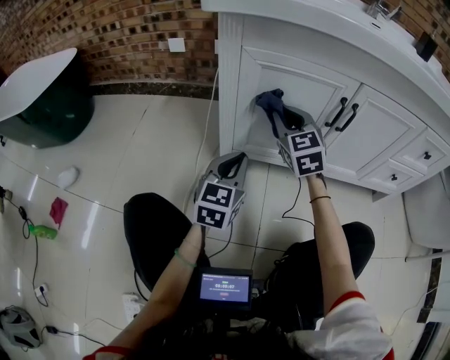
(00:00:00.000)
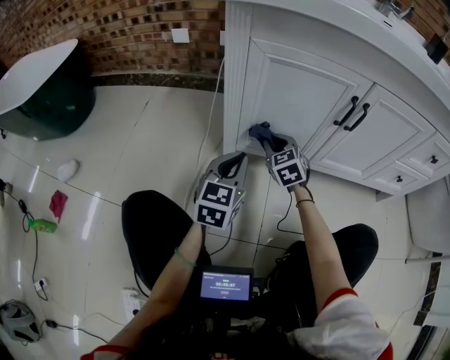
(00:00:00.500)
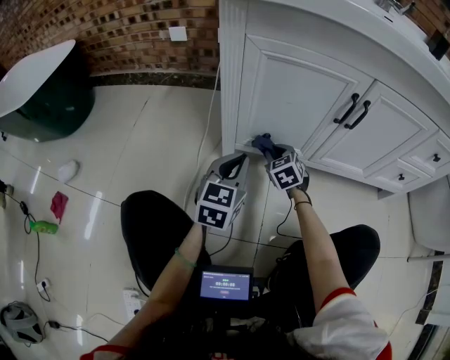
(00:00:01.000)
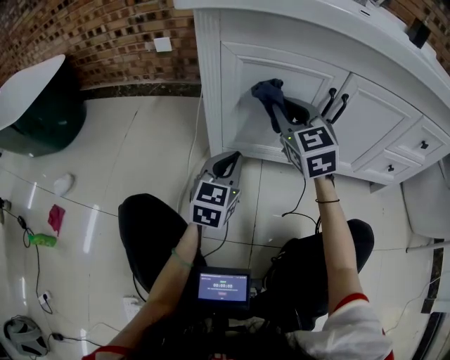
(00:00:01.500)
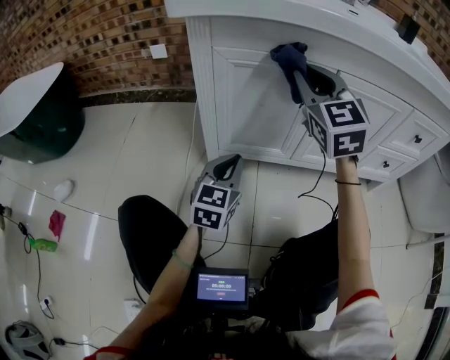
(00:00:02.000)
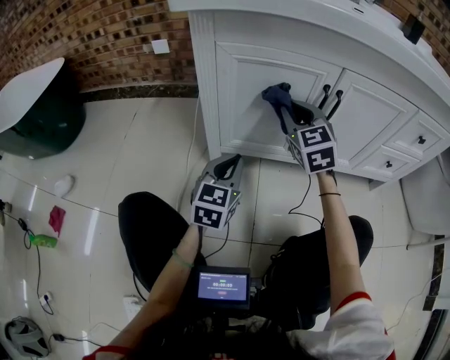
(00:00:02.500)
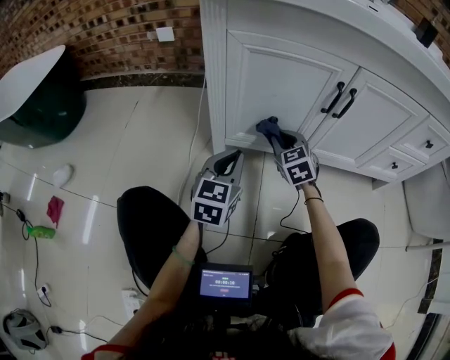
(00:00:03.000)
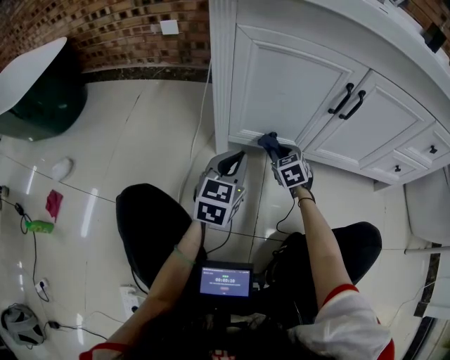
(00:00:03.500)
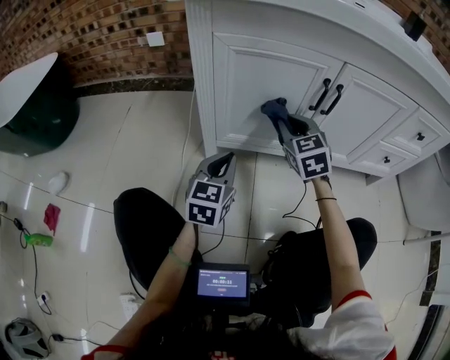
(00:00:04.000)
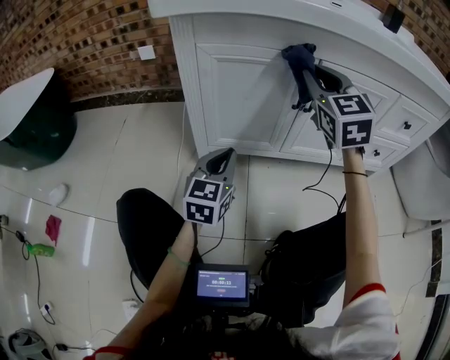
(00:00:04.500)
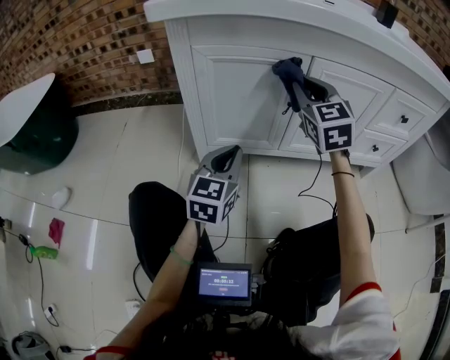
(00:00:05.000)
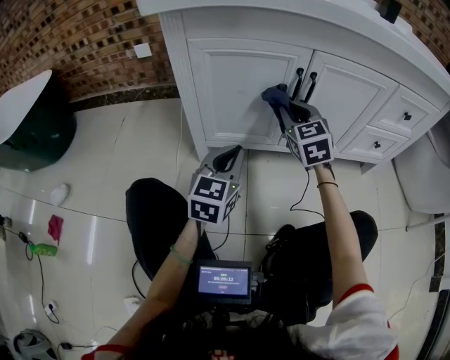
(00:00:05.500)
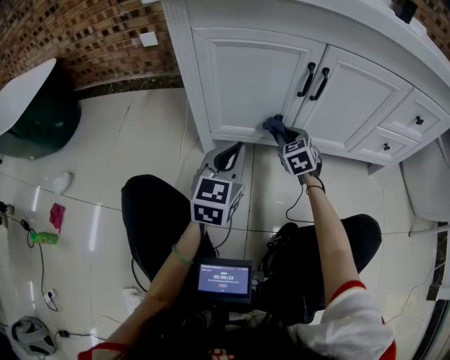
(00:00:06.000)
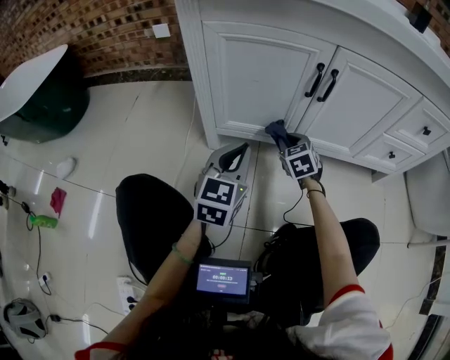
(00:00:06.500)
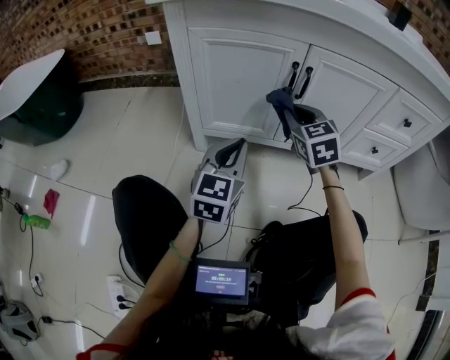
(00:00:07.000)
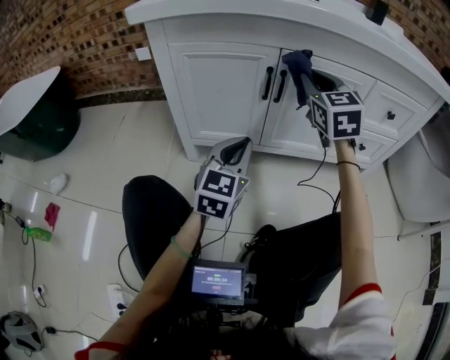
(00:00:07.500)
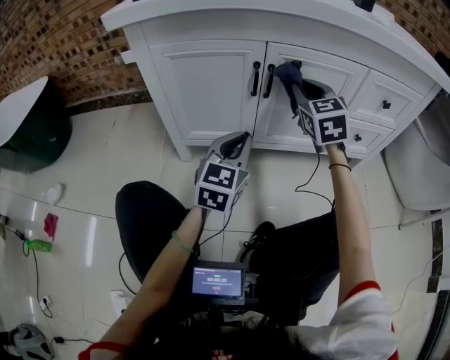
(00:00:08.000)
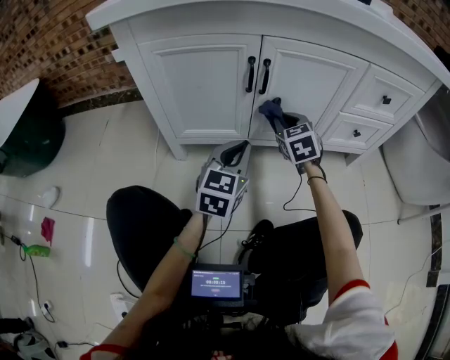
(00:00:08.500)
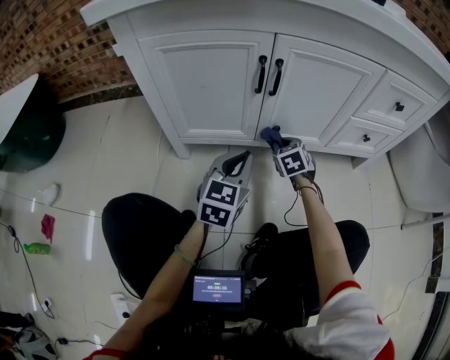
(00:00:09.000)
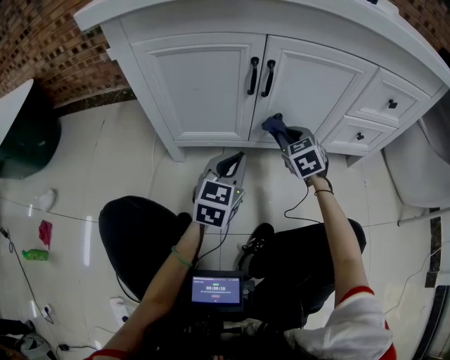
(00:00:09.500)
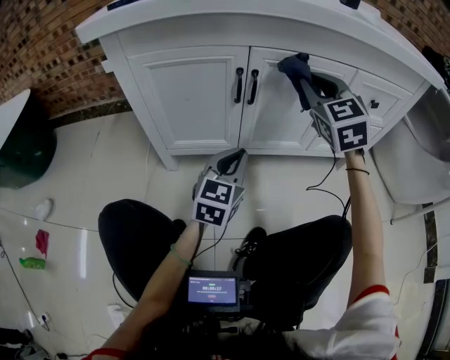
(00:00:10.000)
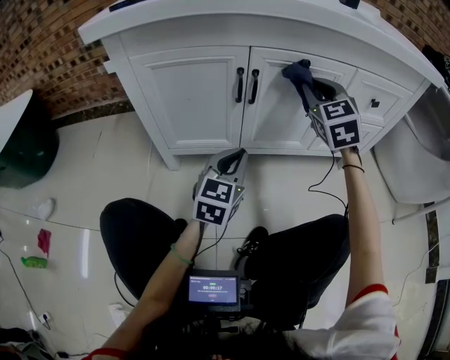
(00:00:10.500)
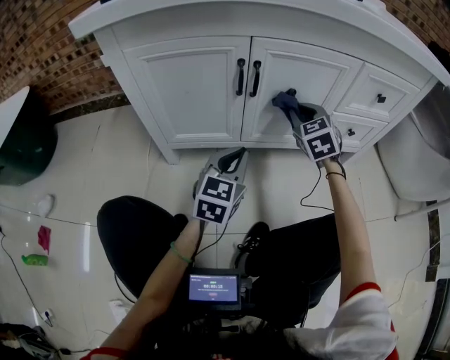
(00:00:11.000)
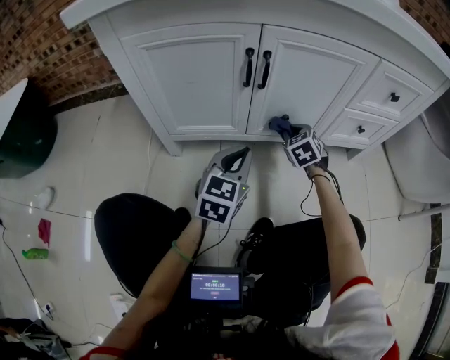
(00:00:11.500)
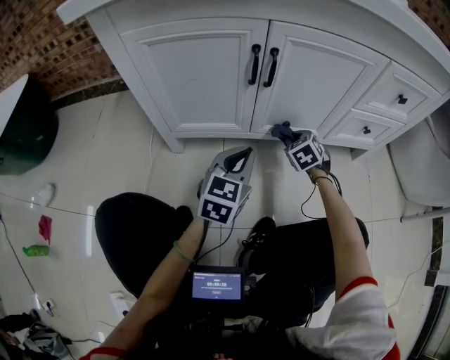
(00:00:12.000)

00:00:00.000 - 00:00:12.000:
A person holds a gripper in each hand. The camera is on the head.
00:00:00.000 - 00:00:02.000: The right gripper moves upward and to the right, roughly 20 cm.
00:00:02.000 - 00:00:04.000: The right gripper goes some 20 cm downward, and changes its angle by approximately 20 degrees.
00:00:04.000 - 00:00:06.000: The left gripper shifts about 5 cm to the right, while the right gripper shifts roughly 15 cm downward and to the right.
00:00:06.000 - 00:00:08.000: The left gripper heads to the right, covering some 15 cm, while the right gripper heads upward and to the right, covering about 30 cm, and changes its angle by some 20 degrees.
00:00:08.000 - 00:00:10.000: The right gripper reaches some 30 cm downward, then returns.
00:00:10.000 - 00:00:12.000: The left gripper heads downward, covering roughly 5 cm; the right gripper heads downward, covering approximately 40 cm, and tips its fingers downward by approximately 40 degrees.

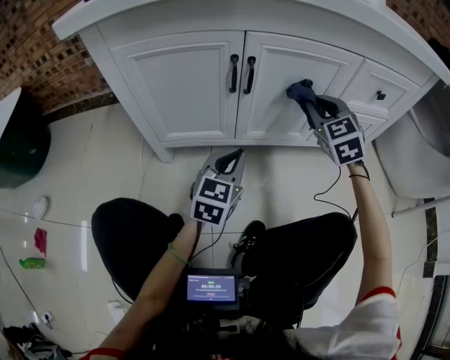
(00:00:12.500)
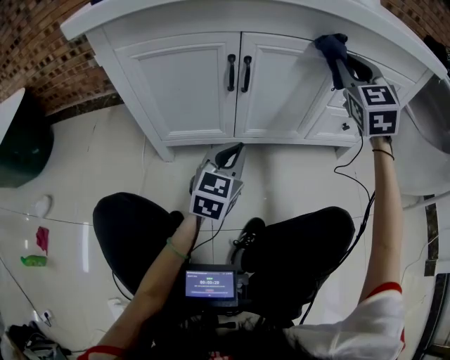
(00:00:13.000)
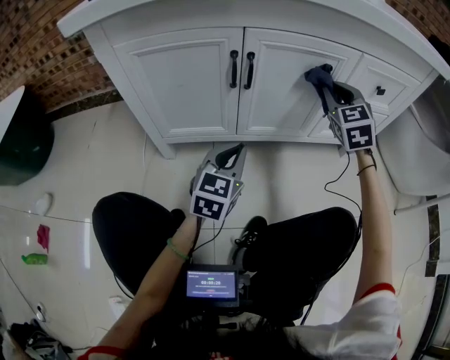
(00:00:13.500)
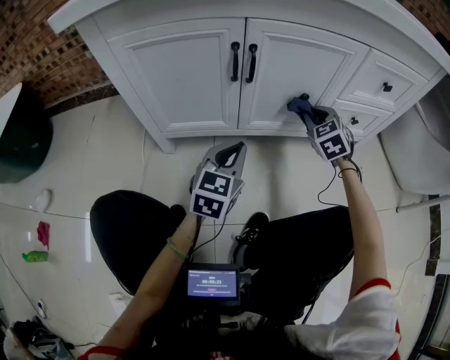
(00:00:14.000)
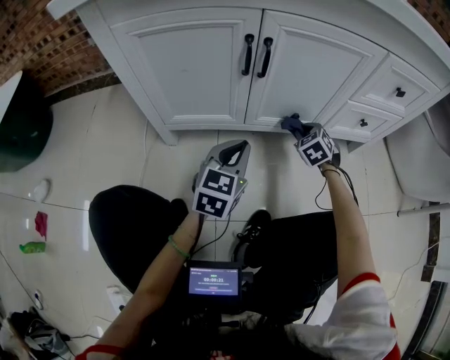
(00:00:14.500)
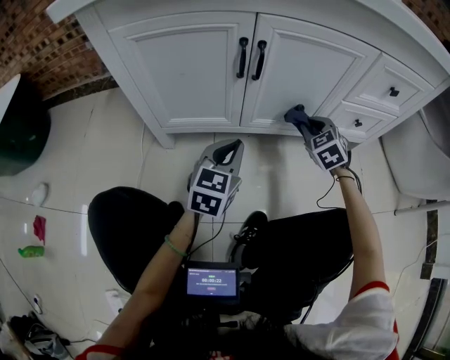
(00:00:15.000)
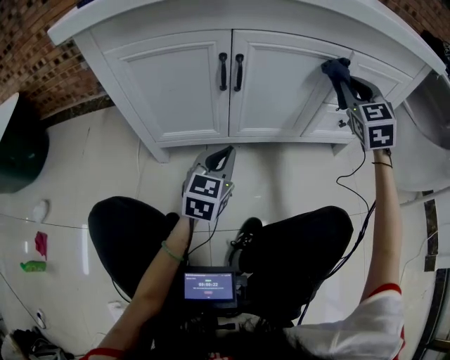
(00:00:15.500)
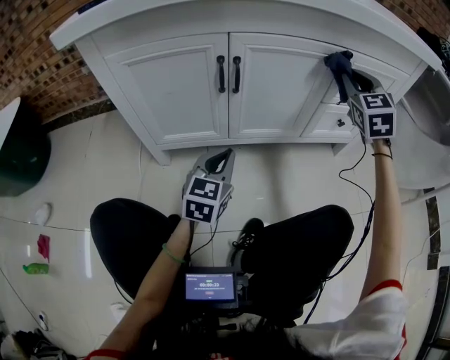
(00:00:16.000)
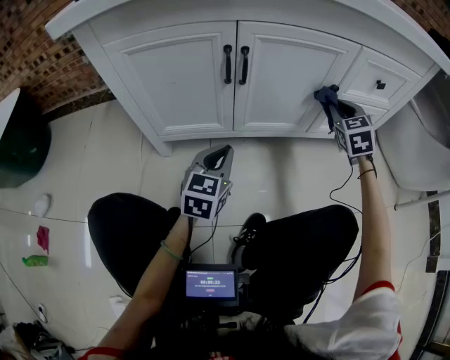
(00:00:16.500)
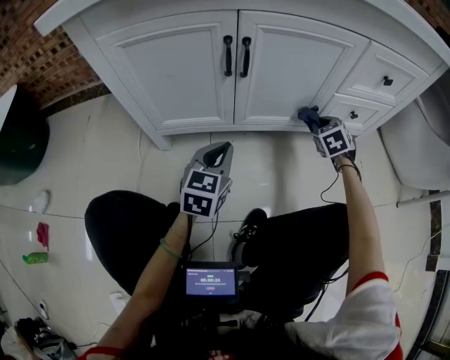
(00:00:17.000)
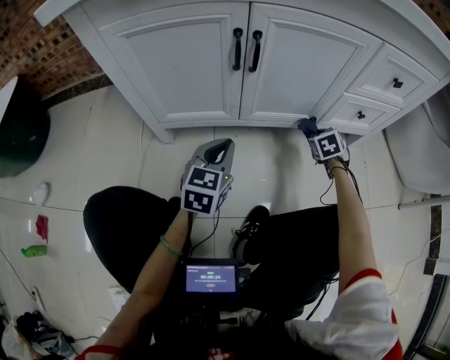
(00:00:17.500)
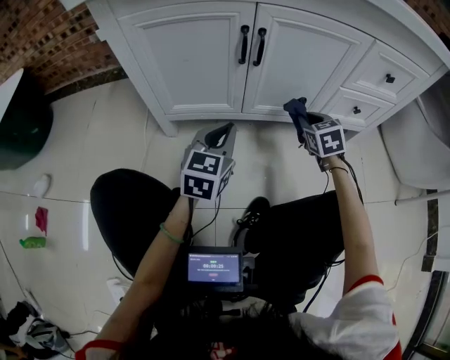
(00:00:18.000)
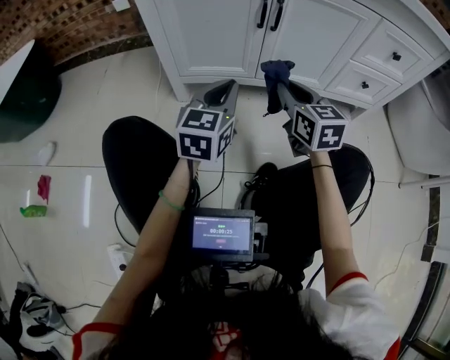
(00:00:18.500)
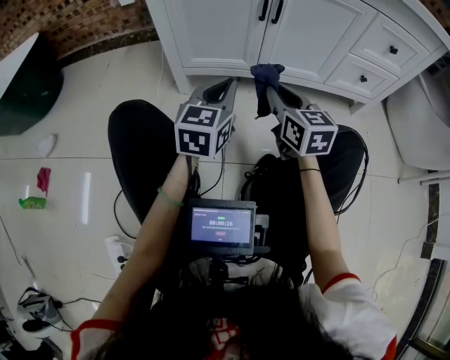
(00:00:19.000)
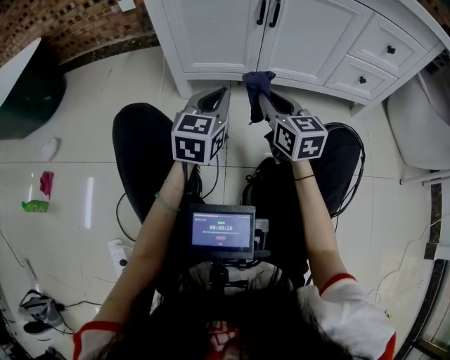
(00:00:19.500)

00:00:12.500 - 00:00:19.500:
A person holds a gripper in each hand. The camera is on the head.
00:00:12.500 - 00:00:14.500: The right gripper heads downward, covering about 25 cm, and swivels approximately 20 degrees.
00:00:14.500 - 00:00:16.000: The right gripper heads upward, covering about 35 cm, and tilts its fingers some 30 degrees upward.
00:00:16.000 - 00:00:17.500: The left gripper is displaced downward by about 5 cm. Meanwhile the right gripper is displaced downward by about 40 cm, and angles its fingers downward, by about 40 degrees.
00:00:17.500 - 00:00:19.500: The left gripper heads backward, upward and to the left, covering about 20 cm, while the right gripper travels to the left, backward and upward by approximately 40 cm, and points its fingers roughly 40 degrees further upward.

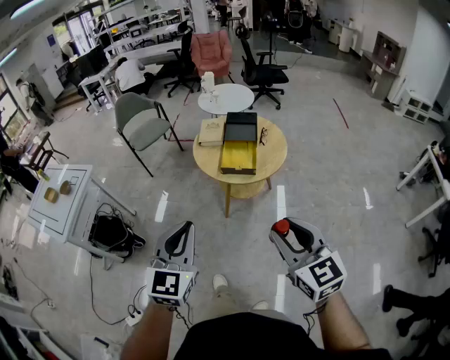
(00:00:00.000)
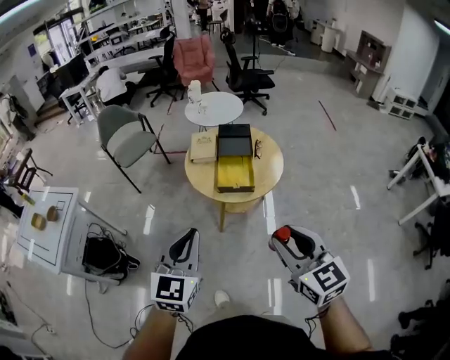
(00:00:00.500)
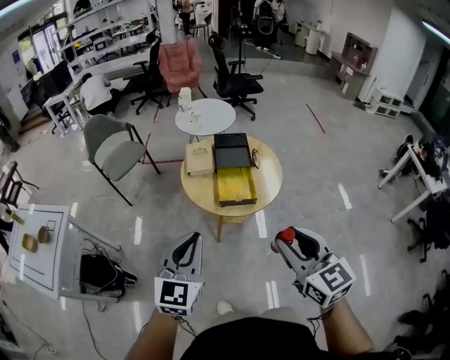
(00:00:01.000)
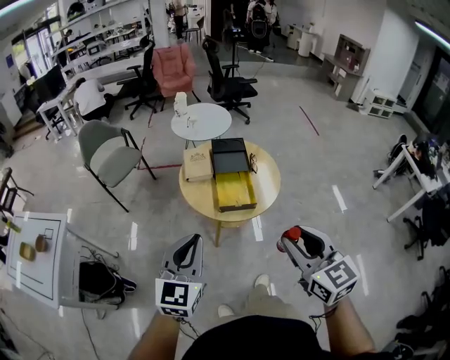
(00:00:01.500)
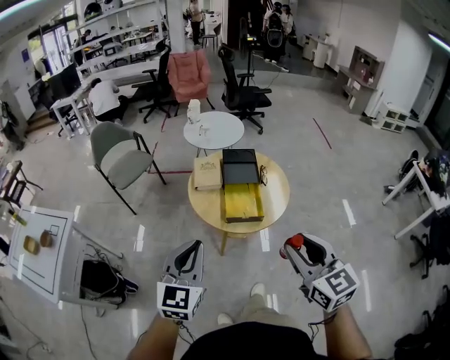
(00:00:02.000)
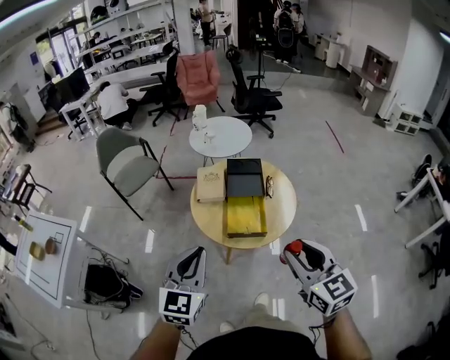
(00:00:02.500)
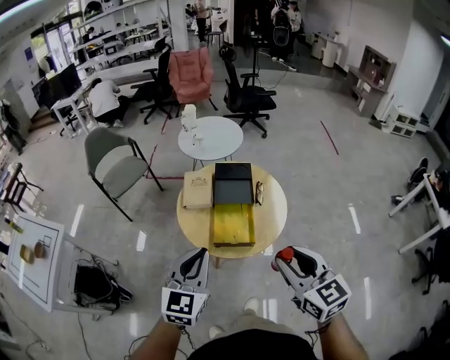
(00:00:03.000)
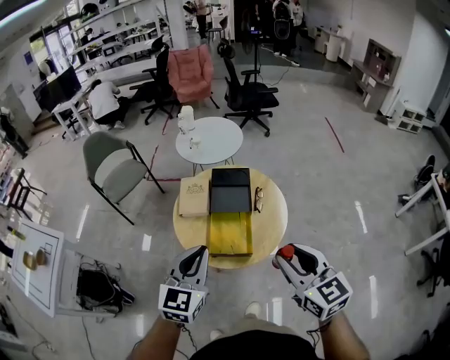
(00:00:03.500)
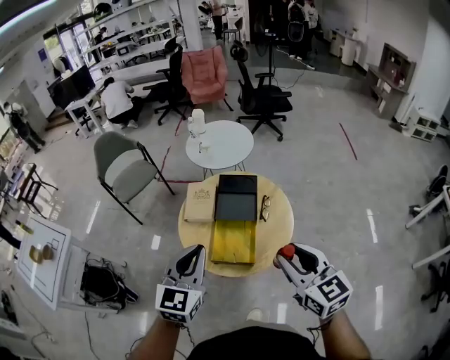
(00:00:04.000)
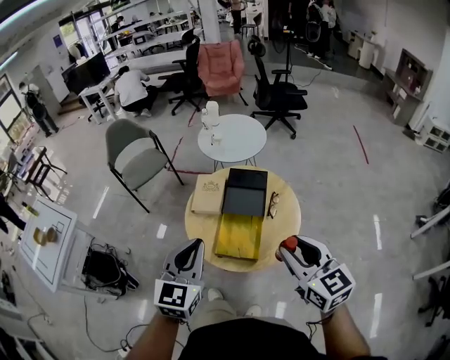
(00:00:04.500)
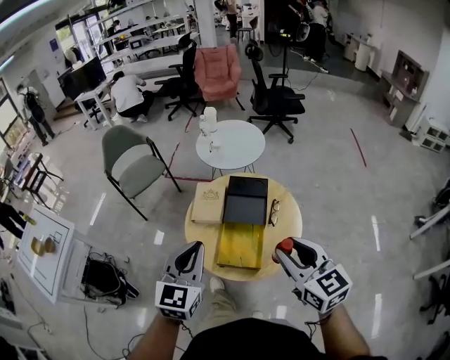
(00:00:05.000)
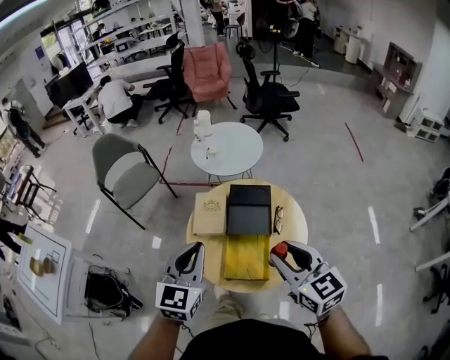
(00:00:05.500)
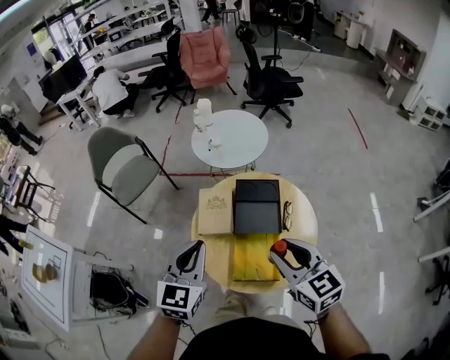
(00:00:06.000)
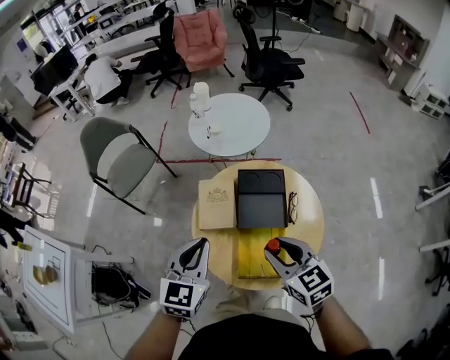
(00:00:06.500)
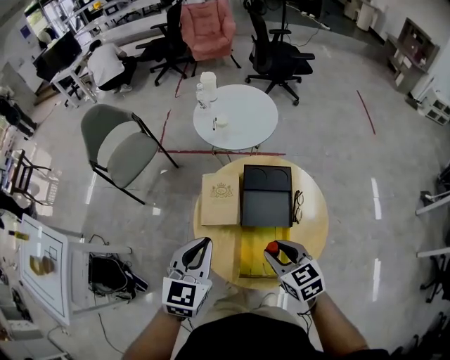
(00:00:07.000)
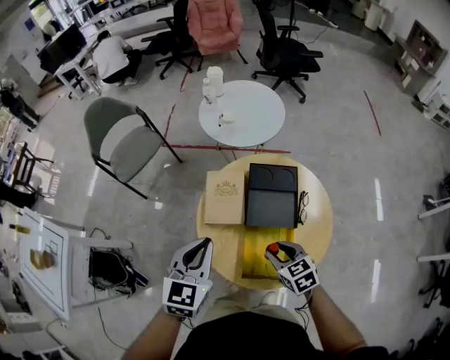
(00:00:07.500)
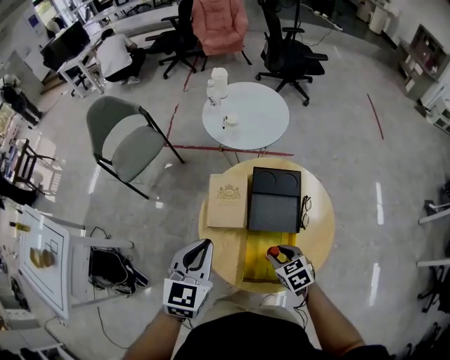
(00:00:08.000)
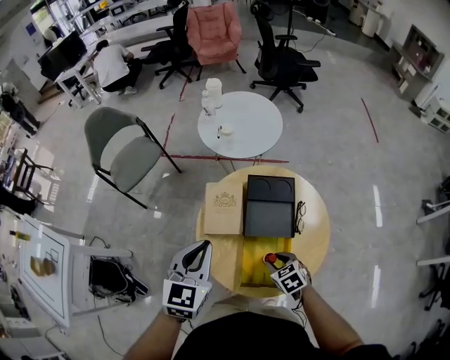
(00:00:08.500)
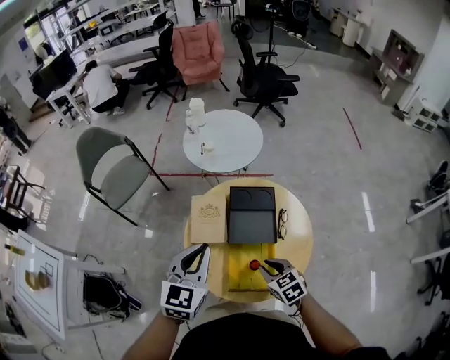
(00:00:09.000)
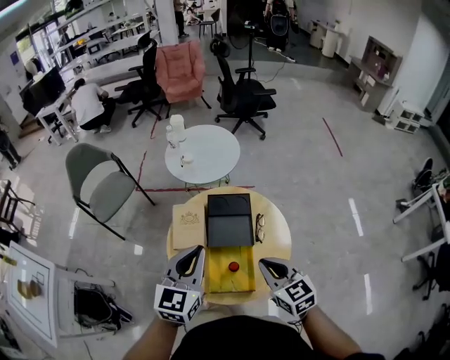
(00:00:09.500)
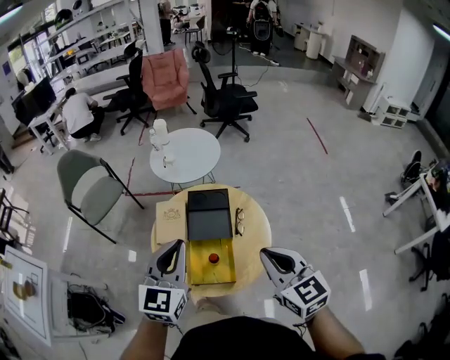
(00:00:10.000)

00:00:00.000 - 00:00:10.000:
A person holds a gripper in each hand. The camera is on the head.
00:00:00.000 - 00:00:02.000: The right gripper shifts some 20 cm forward. Meanwhile the left gripper goes about 25 cm forward and to the left.
00:00:02.000 - 00:00:04.000: Both grippers travel together forward and to the right, some 25 cm.
00:00:04.000 - 00:00:06.000: The two grippers go some 20 cm forward and to the left.
00:00:06.000 - 00:00:08.000: The left gripper heads downward and forward, covering some 10 cm, while the right gripper is displaced downward by roughly 30 cm, and tips its fingers downward by roughly 30 degrees.
00:00:08.000 - 00:00:10.000: The right gripper heads upward and to the right, covering approximately 35 cm, points its fingers some 30 degrees further upward, and closes. Meanwhile the left gripper goes roughly 20 cm upward, to the right and backward.
